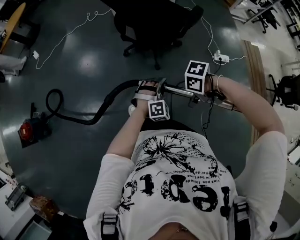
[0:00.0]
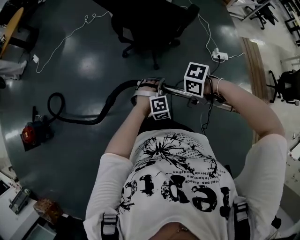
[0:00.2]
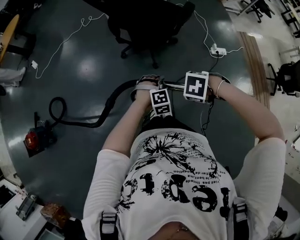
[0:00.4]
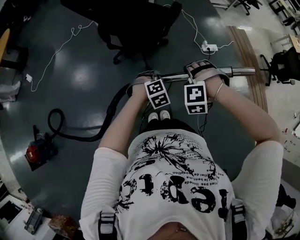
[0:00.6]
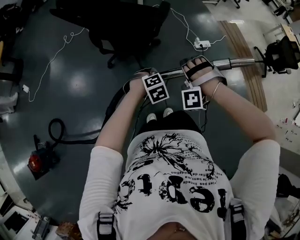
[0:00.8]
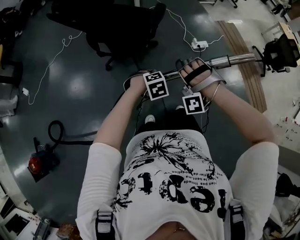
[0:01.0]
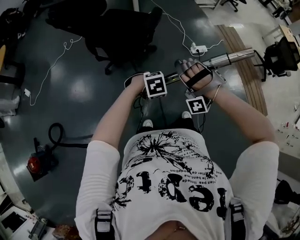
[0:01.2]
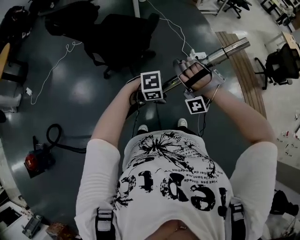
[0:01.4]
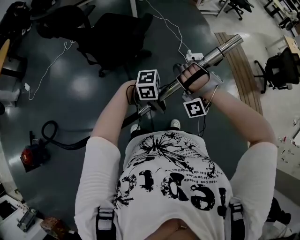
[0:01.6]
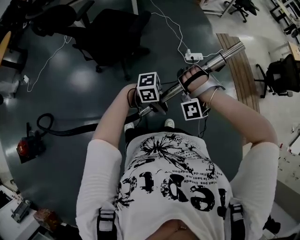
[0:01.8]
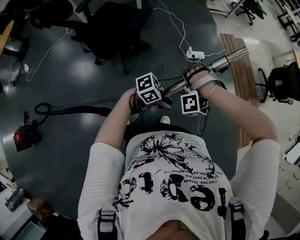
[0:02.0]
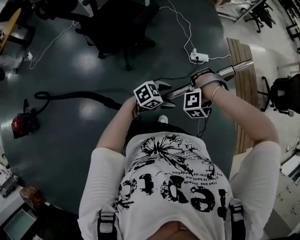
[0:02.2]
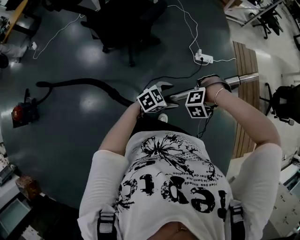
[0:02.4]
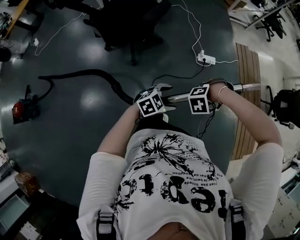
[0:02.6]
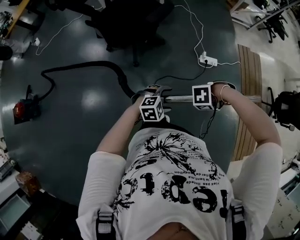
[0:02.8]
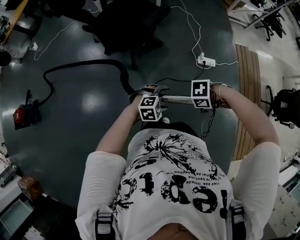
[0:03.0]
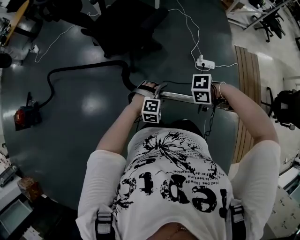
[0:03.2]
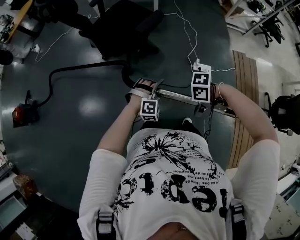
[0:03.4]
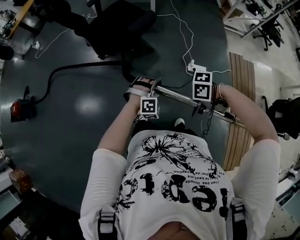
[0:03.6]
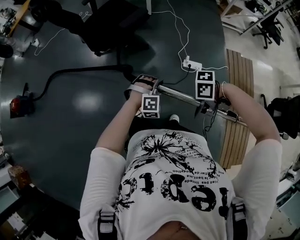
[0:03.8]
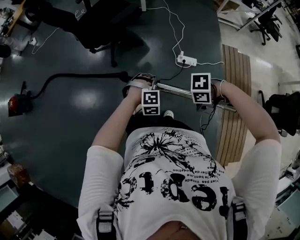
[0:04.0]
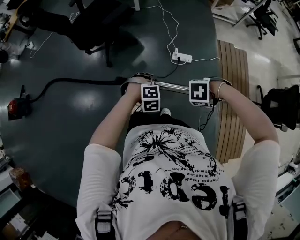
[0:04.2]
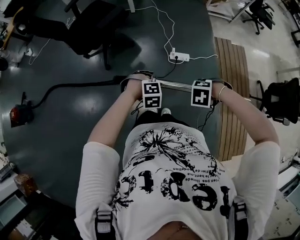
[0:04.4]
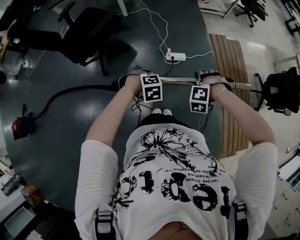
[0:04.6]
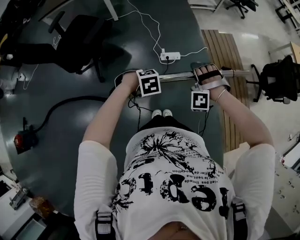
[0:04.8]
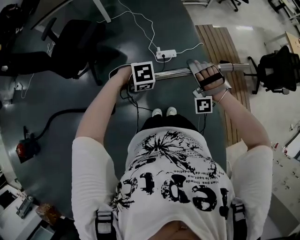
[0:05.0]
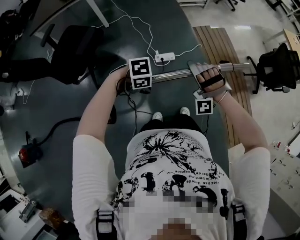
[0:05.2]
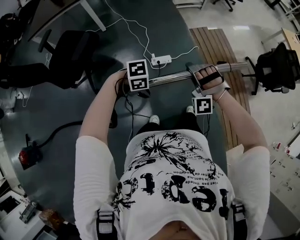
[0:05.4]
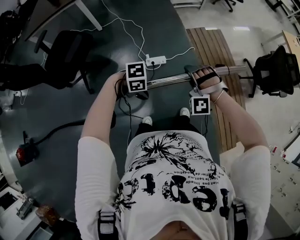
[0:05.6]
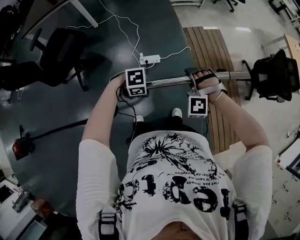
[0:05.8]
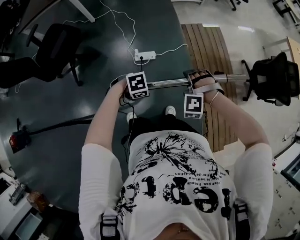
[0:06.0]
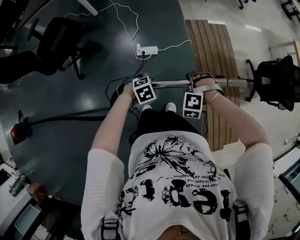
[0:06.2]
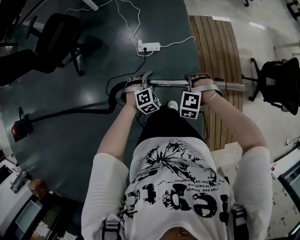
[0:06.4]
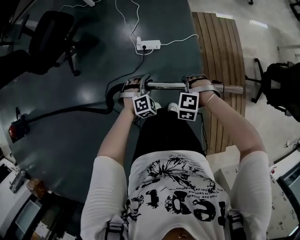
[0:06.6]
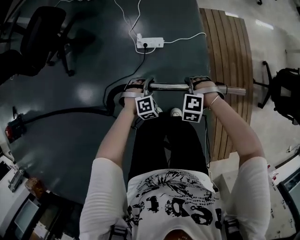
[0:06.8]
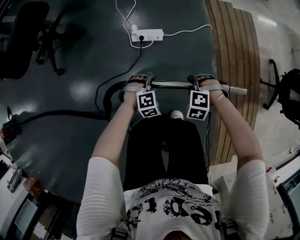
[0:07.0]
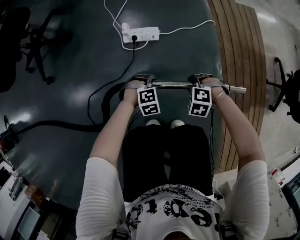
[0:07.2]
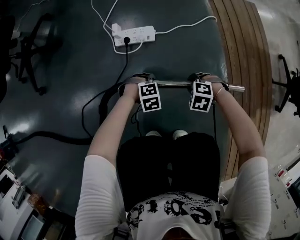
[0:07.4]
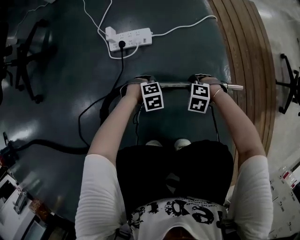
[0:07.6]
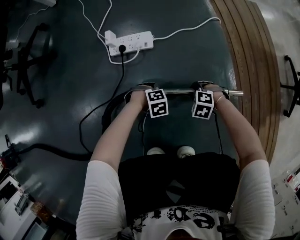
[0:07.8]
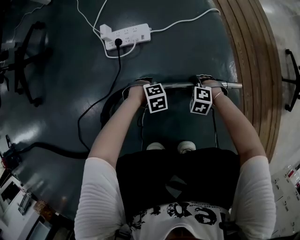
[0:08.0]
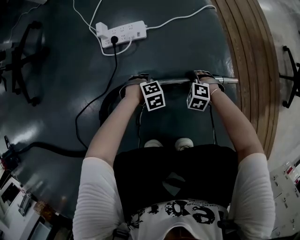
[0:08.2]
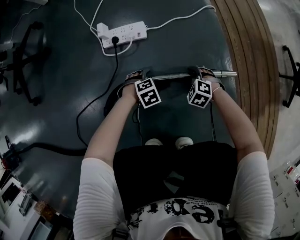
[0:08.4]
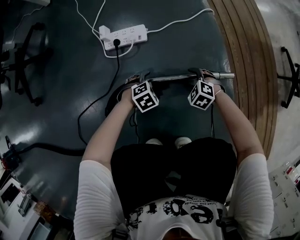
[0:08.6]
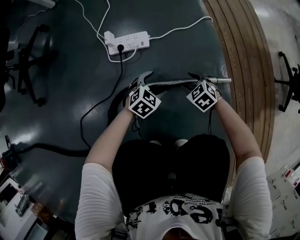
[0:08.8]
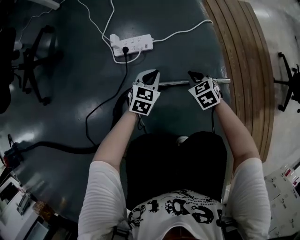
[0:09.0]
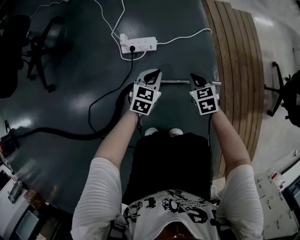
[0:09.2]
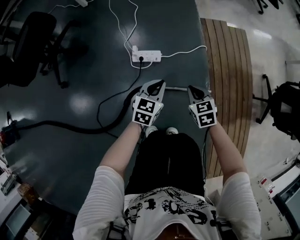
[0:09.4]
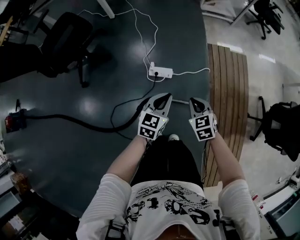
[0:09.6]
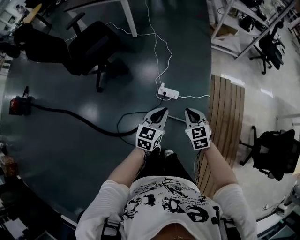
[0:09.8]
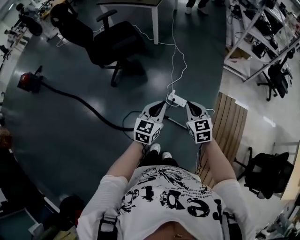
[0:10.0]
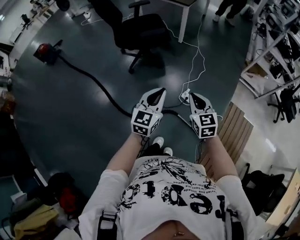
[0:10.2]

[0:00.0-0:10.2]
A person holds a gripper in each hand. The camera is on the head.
0:00.0 to 0:01.4: The left gripper moves roughly 25 cm, and changes its angle by approximately 70 degrees.
0:01.4 to 0:03.0: The left gripper changes place by roughly 20 cm, changes its angle by approximately 40 degrees, and opens.
0:03.0 to 0:04.4: The left gripper shifts by some 30 cm, swivels approximately 30 degrees, and closes.
0:04.4 to 0:05.8: The left gripper moves some 20 cm, and changes its angle by about 50 degrees.
0:05.8 to 0:07.2: The left gripper shifts some 60 cm downward, and turns by about 40 degrees.
0:07.2 to 0:08.8: The left gripper heads downward, covering approximately 10 cm, changes its angle by about 40 degrees, and opens up.
0:08.8 to 0:10.2: The left gripper shifts some 90 cm upward, points its fingers roughly 40 degrees further upward, and closes up.

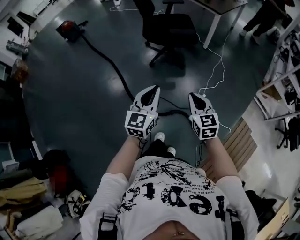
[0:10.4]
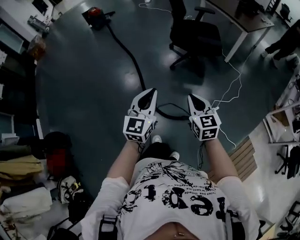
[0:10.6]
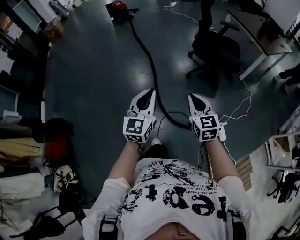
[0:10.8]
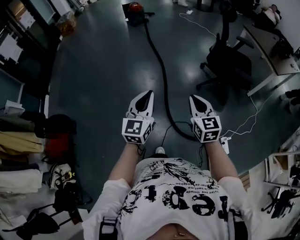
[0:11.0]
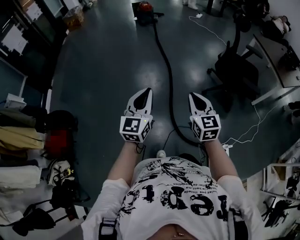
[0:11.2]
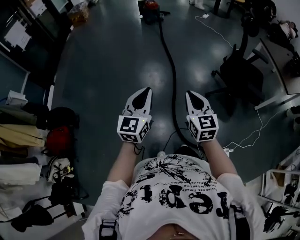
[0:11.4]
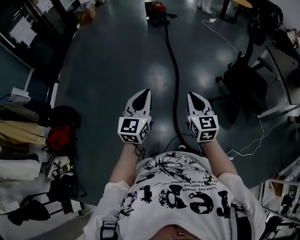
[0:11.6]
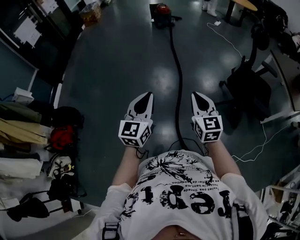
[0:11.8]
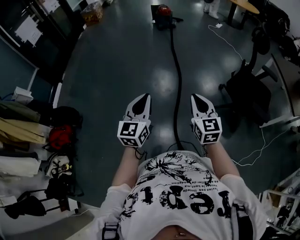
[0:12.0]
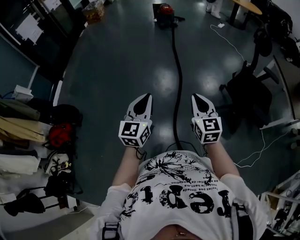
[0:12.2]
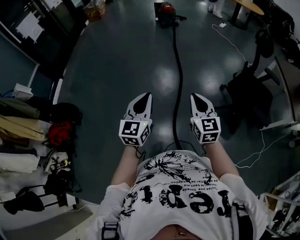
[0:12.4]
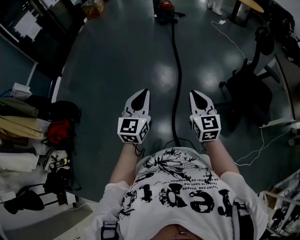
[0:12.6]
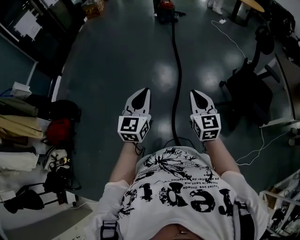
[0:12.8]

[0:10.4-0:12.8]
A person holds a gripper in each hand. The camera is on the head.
0:10.4 to 0:11.6: The left gripper moves approximately 50 cm, and swivels some 40 degrees.
0:11.6 to 0:12.8: The left gripper changes place by roughly 10 cm.

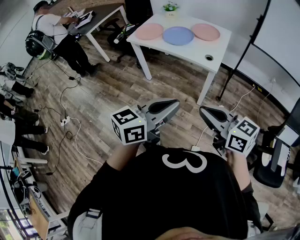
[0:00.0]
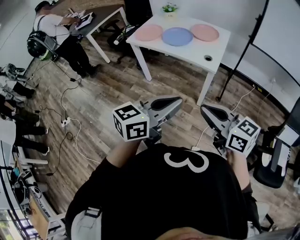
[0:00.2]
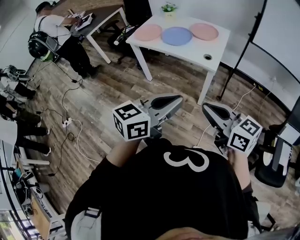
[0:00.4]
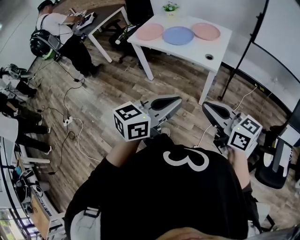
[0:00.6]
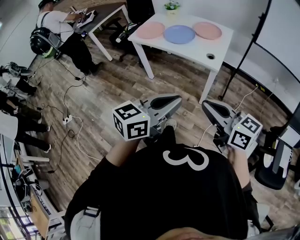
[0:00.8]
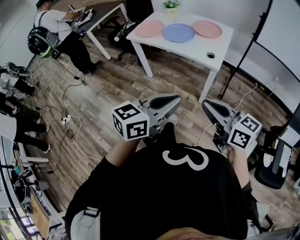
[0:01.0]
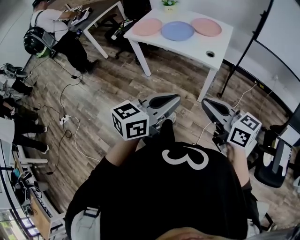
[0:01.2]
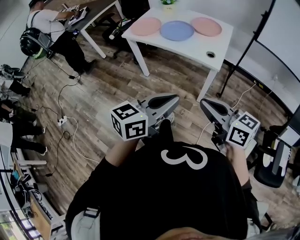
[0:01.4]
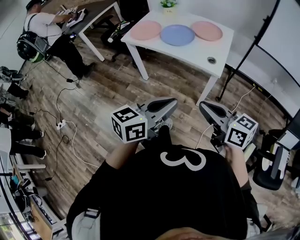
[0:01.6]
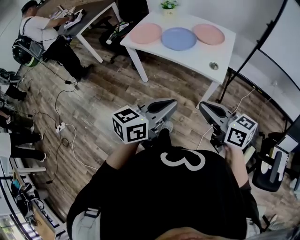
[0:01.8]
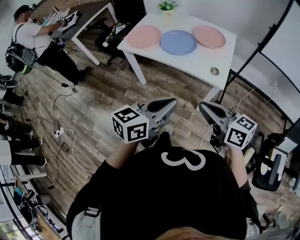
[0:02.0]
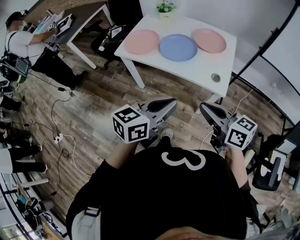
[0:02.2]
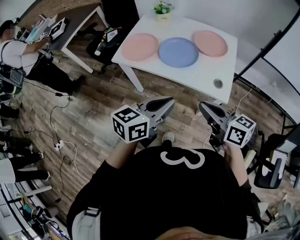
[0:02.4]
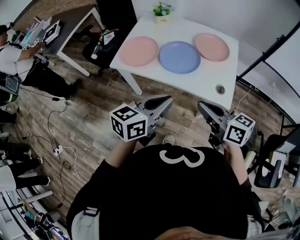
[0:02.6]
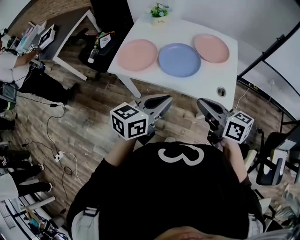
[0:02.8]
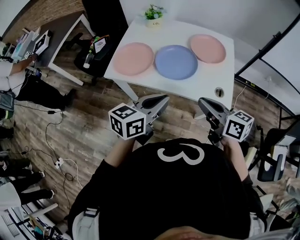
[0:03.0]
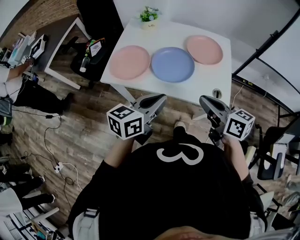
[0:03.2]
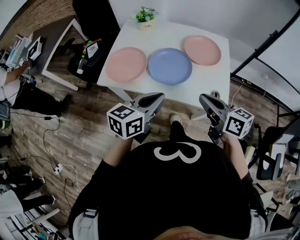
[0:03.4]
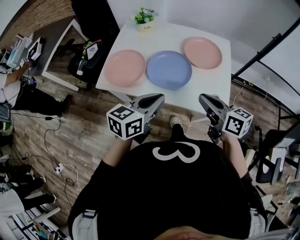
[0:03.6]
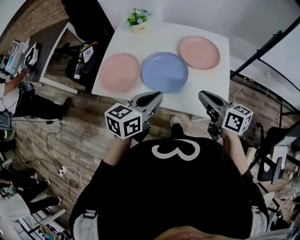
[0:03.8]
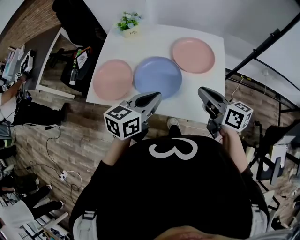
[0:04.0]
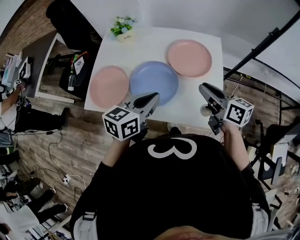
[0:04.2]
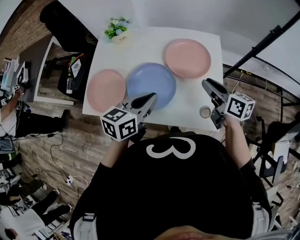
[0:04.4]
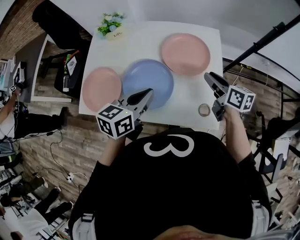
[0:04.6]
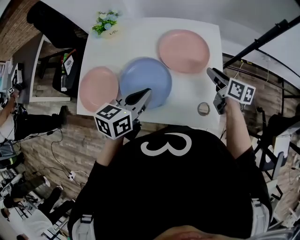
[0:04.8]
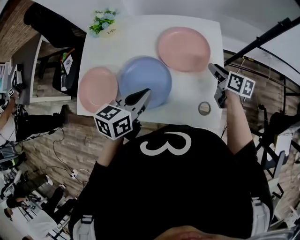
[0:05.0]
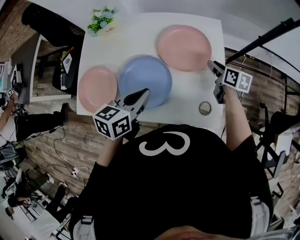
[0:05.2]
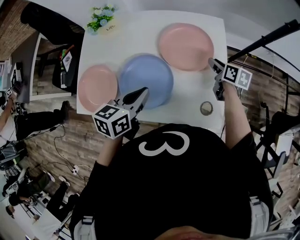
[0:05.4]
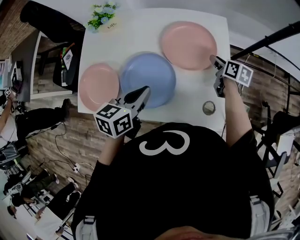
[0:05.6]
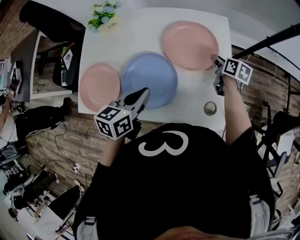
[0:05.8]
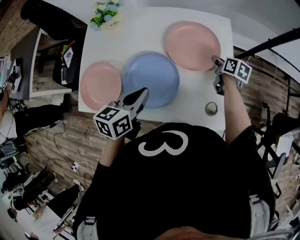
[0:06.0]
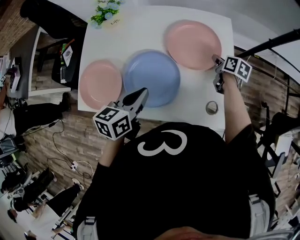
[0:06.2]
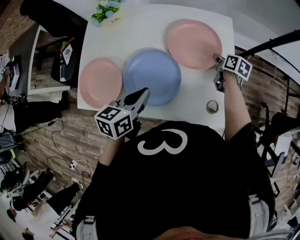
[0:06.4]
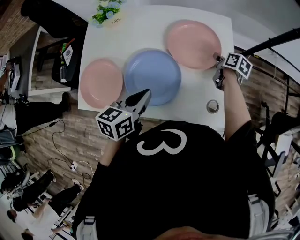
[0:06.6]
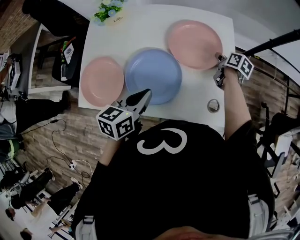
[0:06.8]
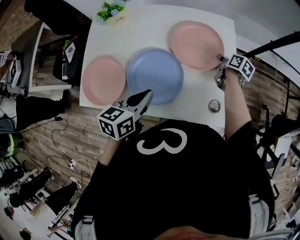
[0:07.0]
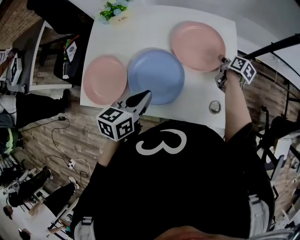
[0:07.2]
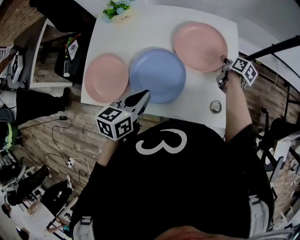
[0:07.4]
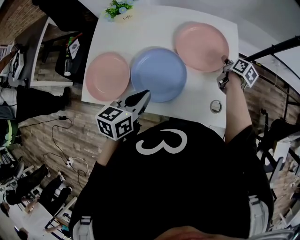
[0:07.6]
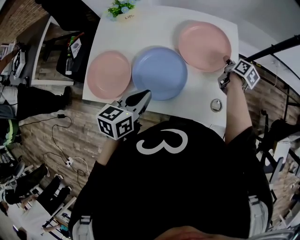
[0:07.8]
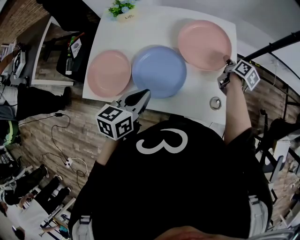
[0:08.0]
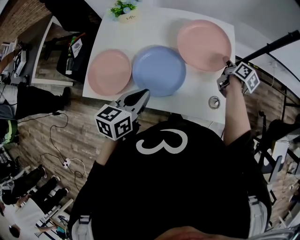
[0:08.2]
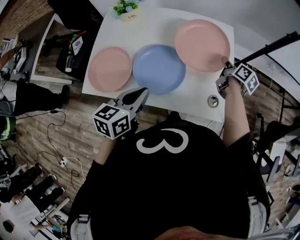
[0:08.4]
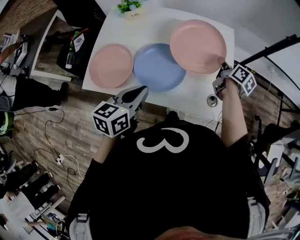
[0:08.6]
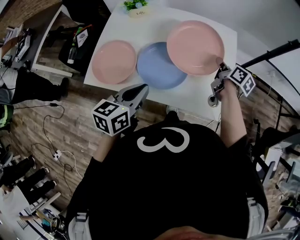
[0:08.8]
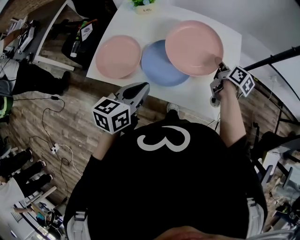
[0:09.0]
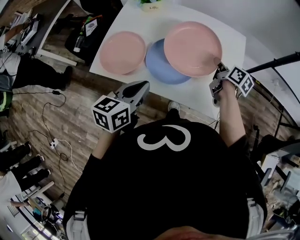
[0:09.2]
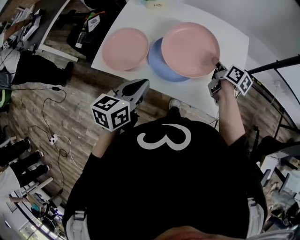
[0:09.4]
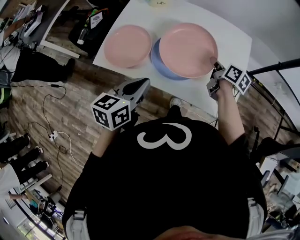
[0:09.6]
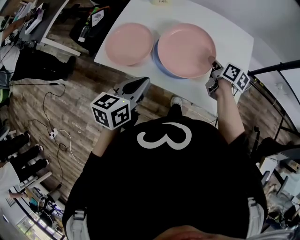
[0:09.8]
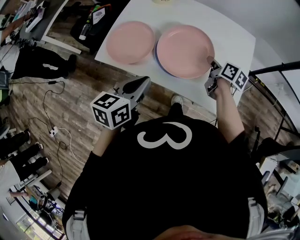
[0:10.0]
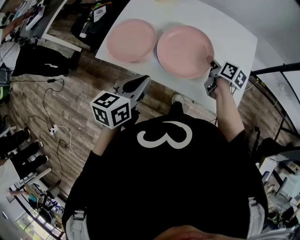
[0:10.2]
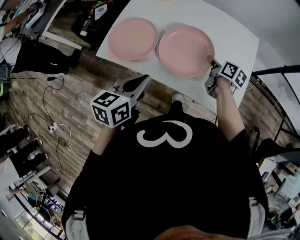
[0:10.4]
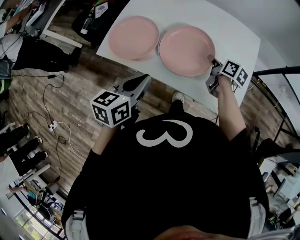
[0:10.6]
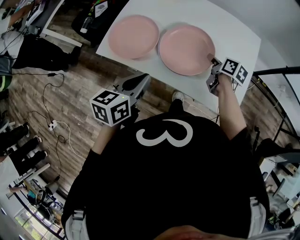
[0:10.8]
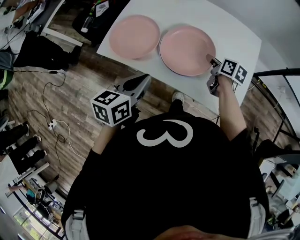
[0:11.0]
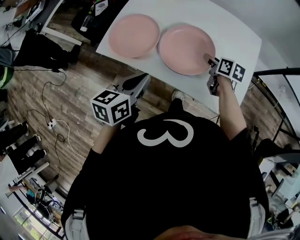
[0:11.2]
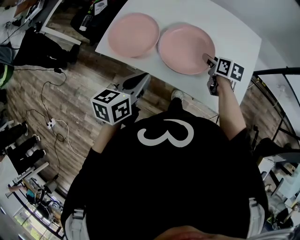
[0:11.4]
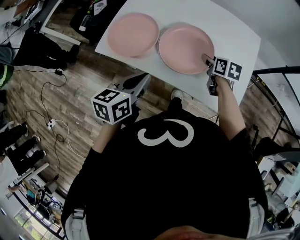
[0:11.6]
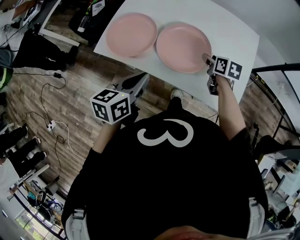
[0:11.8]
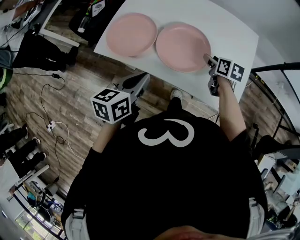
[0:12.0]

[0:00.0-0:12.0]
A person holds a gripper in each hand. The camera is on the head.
0:00.0 to 0:01.6: Both grippers move forward, some 10 cm.
0:01.6 to 0:03.0: Both grippers move forward, approximately 35 cm.
0:03.0 to 0:04.4: The right gripper travels forward and to the right by some 30 cm, and opens up, while the left gripper shifts about 20 cm forward.
0:04.4 to 0:06.0: The left gripper travels downward by approximately 5 cm; the right gripper heads downward and forward, covering some 25 cm, and changes its angle by some 30 degrees.
0:06.0 to 0:07.6: The left gripper shifts by about 5 cm.
0:07.6 to 0:09.0: The right gripper heads upward, backward and to the left, covering about 15 cm. The left gripper heads backward, covering approximately 10 cm.
0:09.0 to 0:10.4: The left gripper moves to the left, roughly 5 cm; the right gripper goes some 10 cm to the left and downward.
0:10.4 to 0:12.0: The right gripper changes its angle by approximately 20 degrees, and opens.
